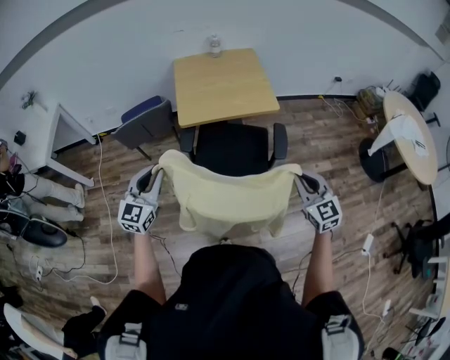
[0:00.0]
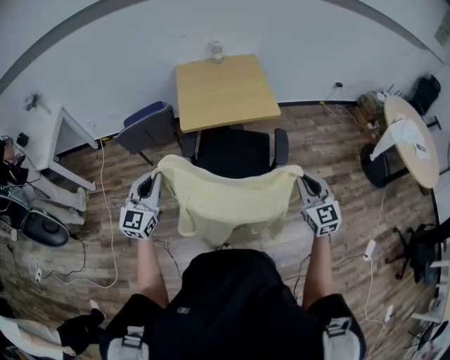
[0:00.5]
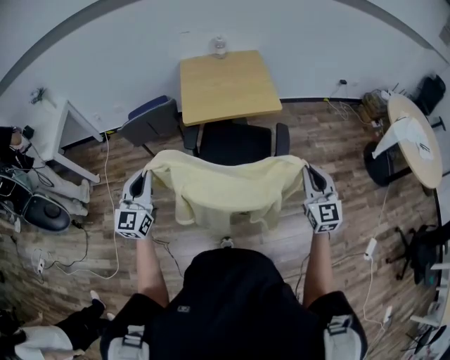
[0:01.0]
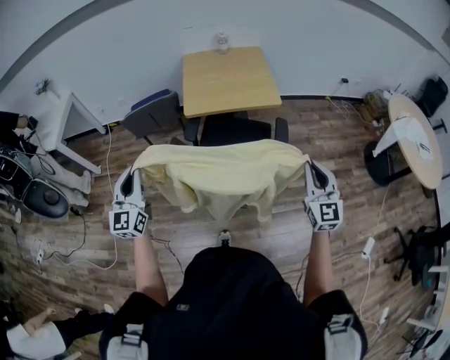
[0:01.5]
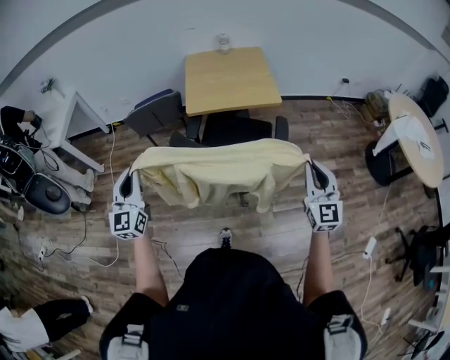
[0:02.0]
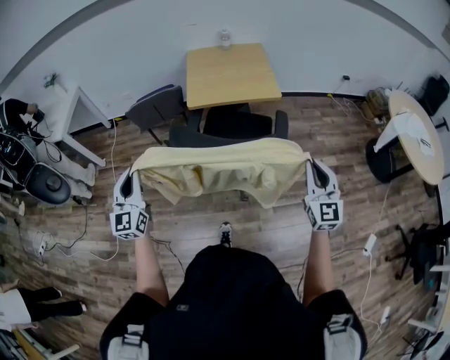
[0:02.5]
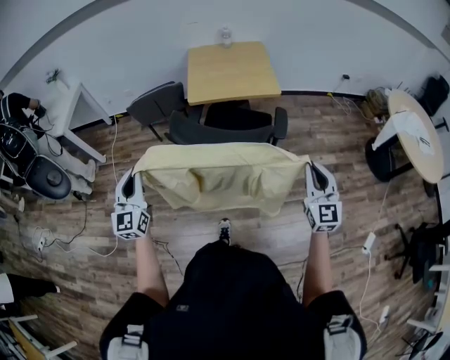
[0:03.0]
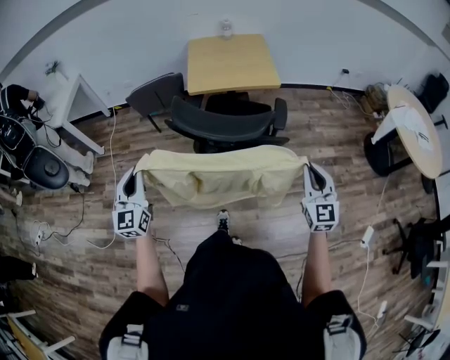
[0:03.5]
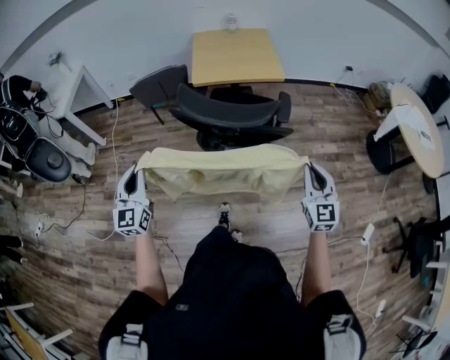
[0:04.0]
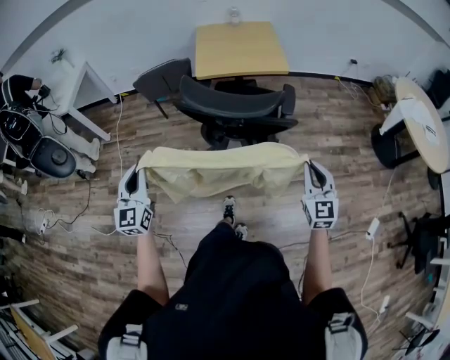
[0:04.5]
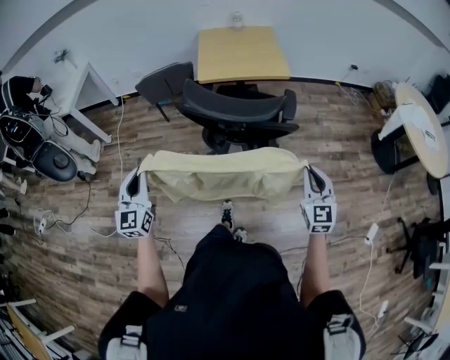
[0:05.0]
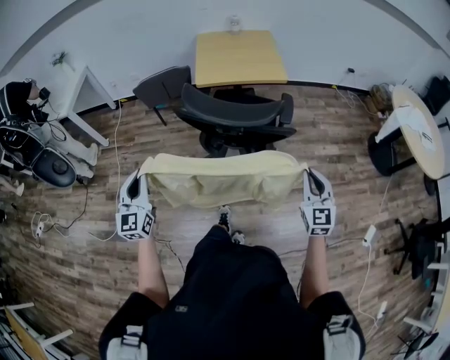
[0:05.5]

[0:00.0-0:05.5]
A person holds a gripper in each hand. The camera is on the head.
0:00.0 to 0:02.0: The right gripper is displaced backward, upward and to the right by roughly 10 cm. The left gripper shifts roughly 15 cm backward and upward, and rotates about 30 degrees.
0:02.0 to 0:03.5: Both grippers move backward, approximately 10 cm.
0:03.5 to 0:05.5: The right gripper ends up approximately 5 cm from where it was. Meanwhile the left gripper ends up about 5 cm from where it was.

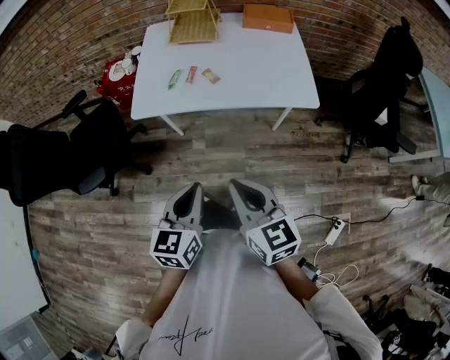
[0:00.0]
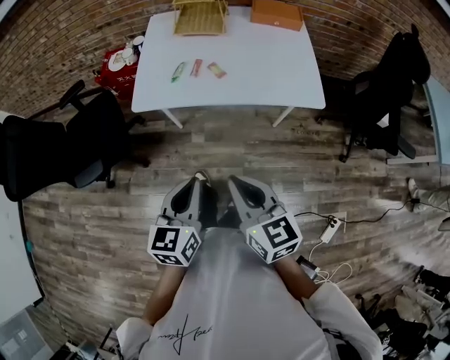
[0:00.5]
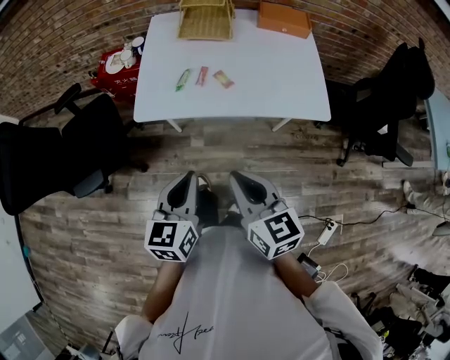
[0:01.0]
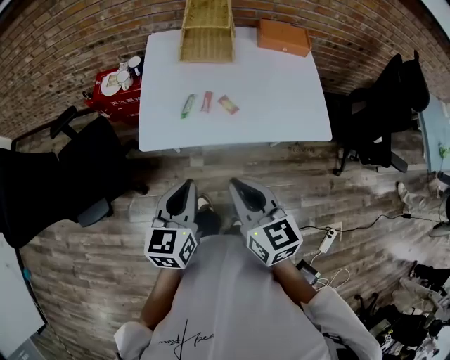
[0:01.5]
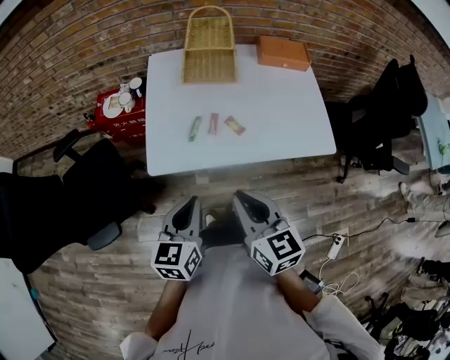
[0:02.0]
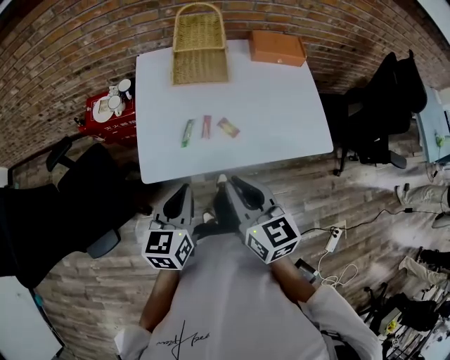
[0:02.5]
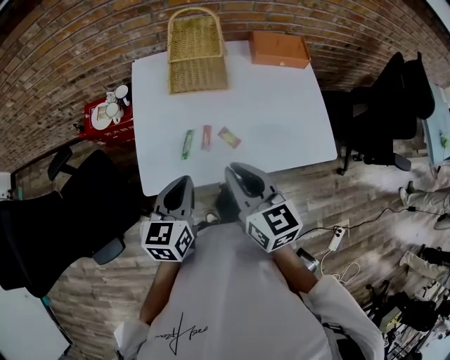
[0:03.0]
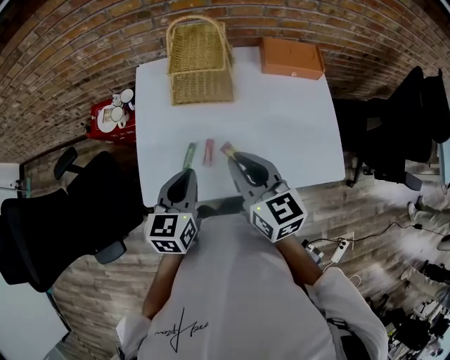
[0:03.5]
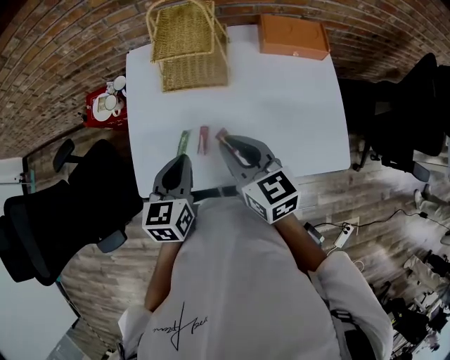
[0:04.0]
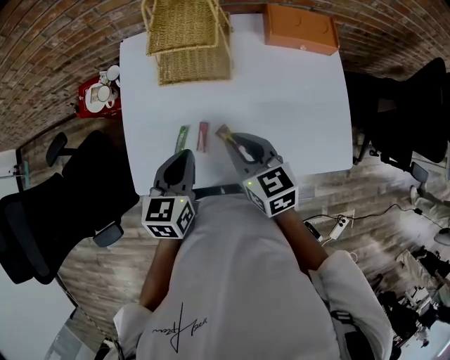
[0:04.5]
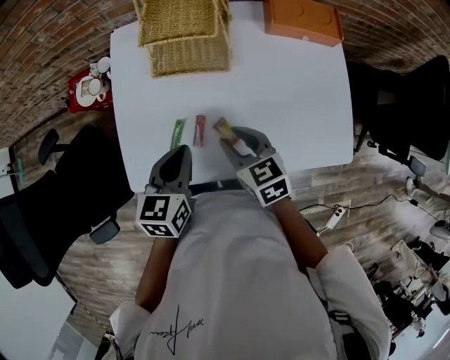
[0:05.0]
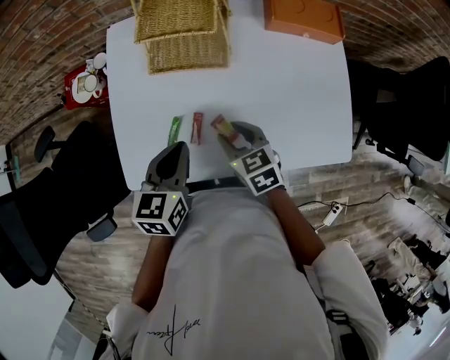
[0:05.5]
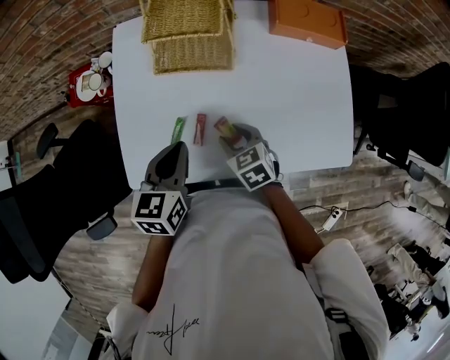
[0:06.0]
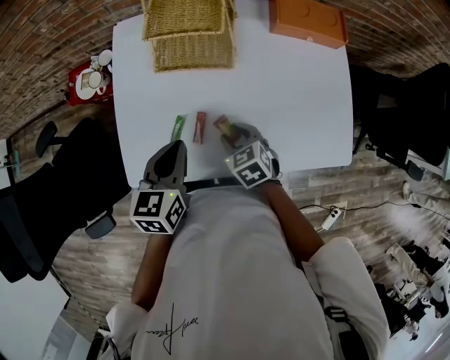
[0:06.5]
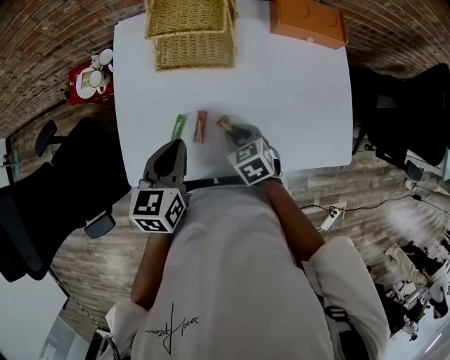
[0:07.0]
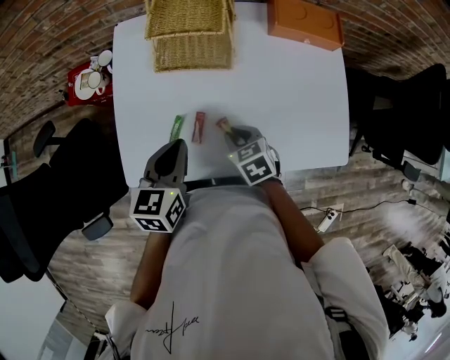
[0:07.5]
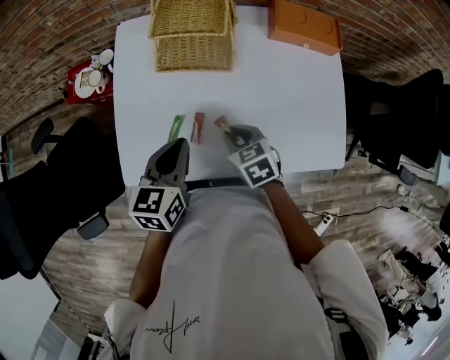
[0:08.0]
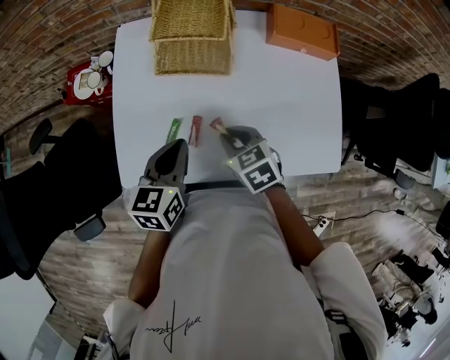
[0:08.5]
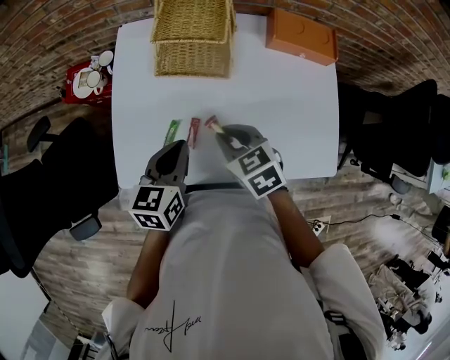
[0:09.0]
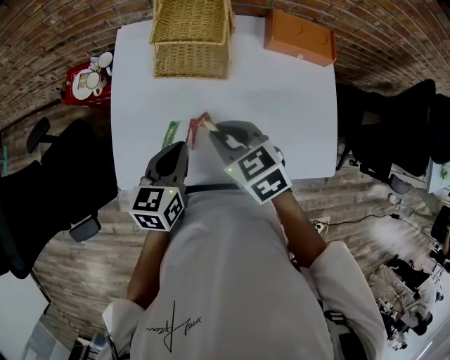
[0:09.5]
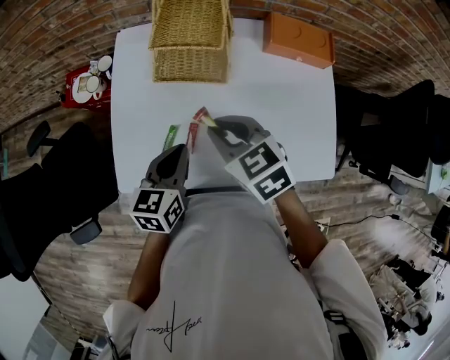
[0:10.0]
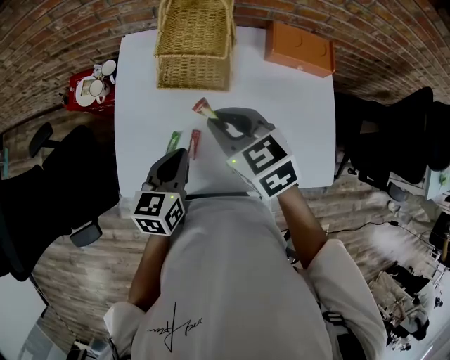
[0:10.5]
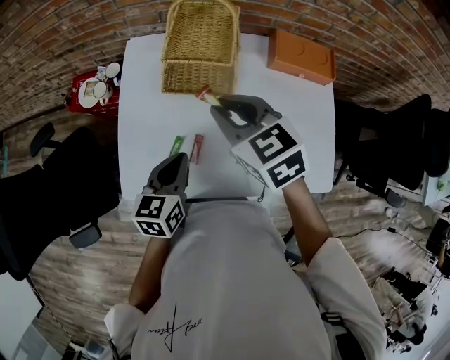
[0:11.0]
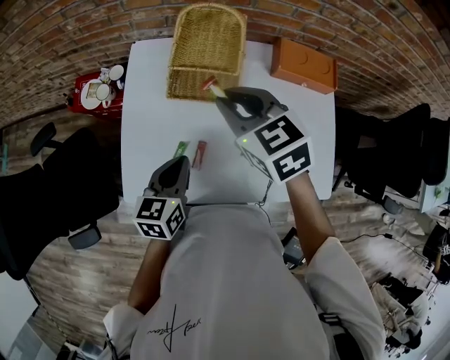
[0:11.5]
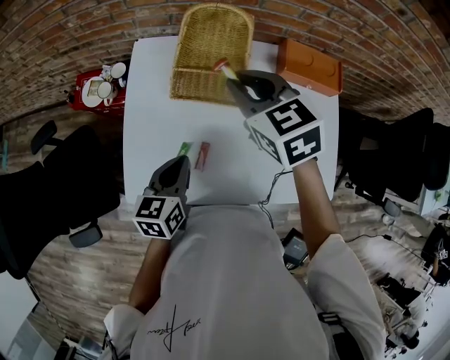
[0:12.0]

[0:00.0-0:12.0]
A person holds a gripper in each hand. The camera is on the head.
0:00.0 to 0:02.0: Both grippers travel together forward and to the left, about 20 cm.
0:02.0 to 0:04.0: The grippers both shift forward by some 20 cm.
0:04.0 to 0:06.0: The right gripper is displaced downward by approximately 20 cm, swivels approximately 30 degrees, and opens its fingers.
0:06.0 to 0:08.0: The right gripper closes up.
0:08.0 to 0:10.0: The right gripper shifts about 15 cm upward.
0:10.0 to 0:12.0: The right gripper moves forward and upward, some 15 cm.

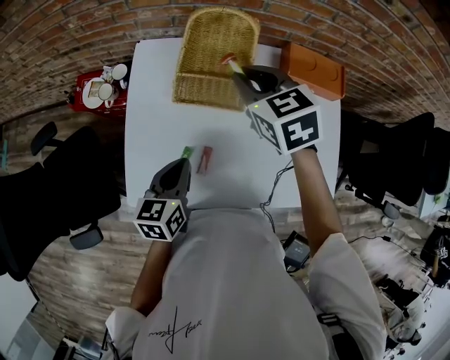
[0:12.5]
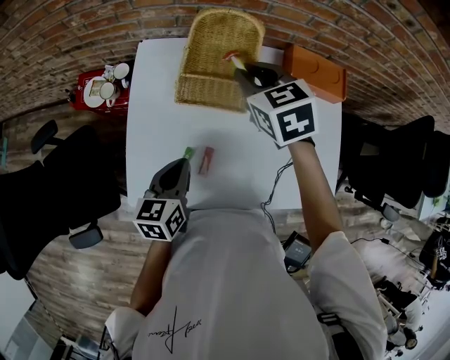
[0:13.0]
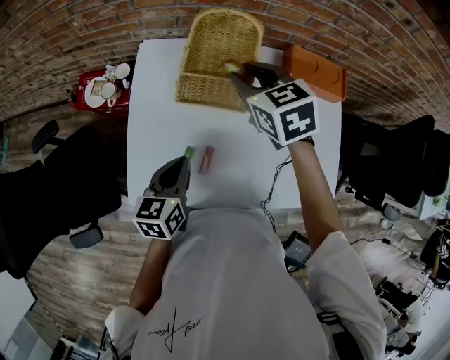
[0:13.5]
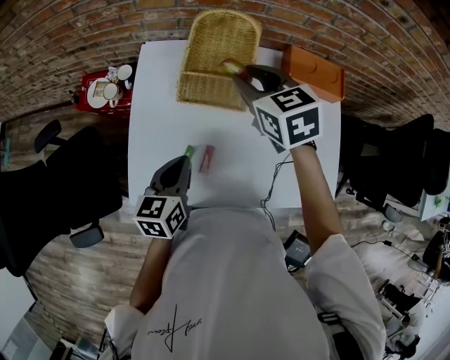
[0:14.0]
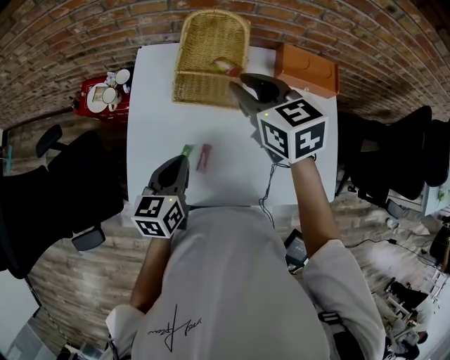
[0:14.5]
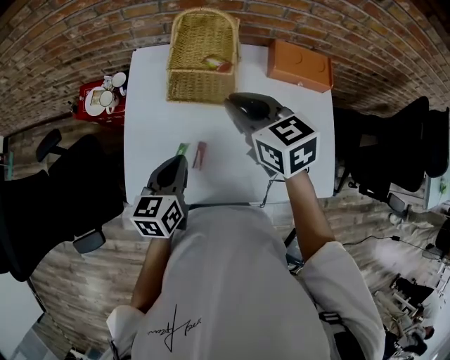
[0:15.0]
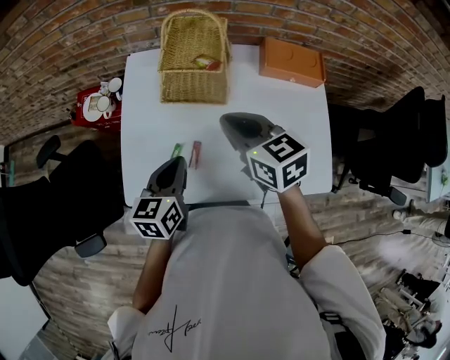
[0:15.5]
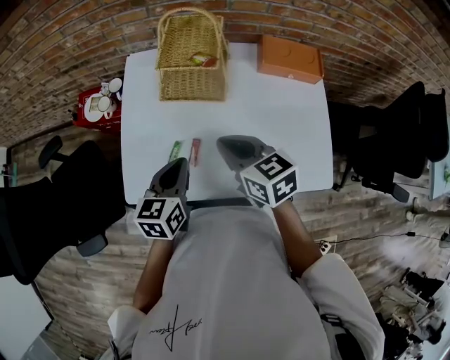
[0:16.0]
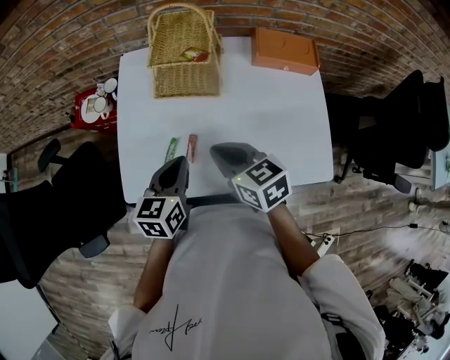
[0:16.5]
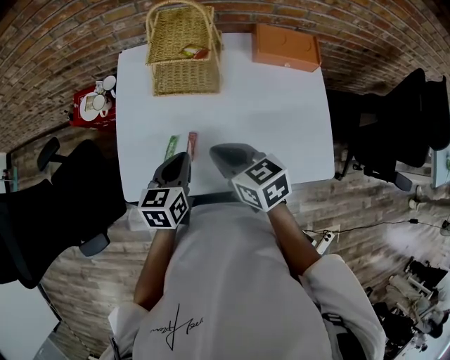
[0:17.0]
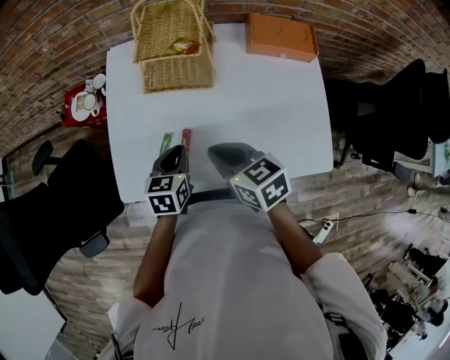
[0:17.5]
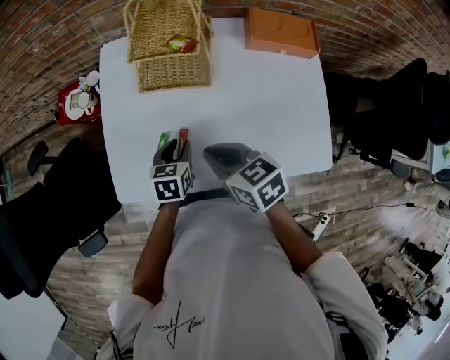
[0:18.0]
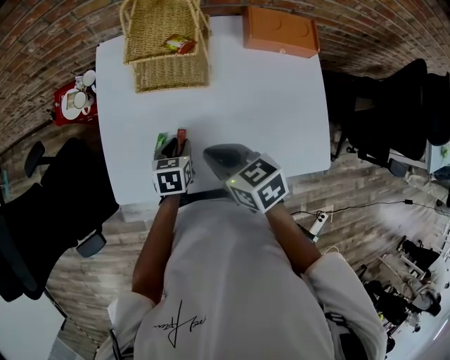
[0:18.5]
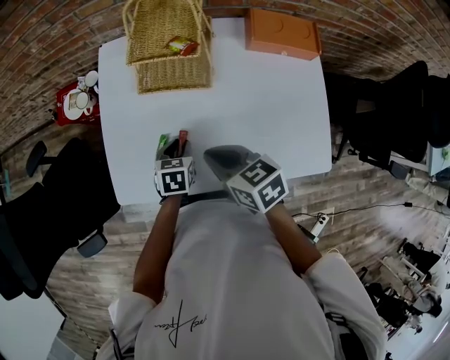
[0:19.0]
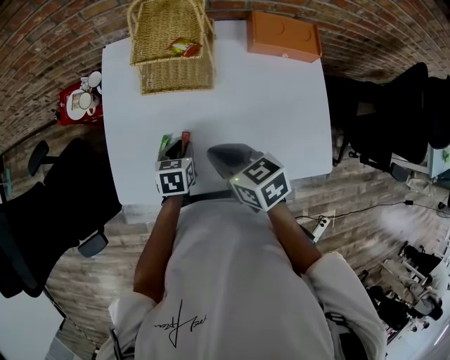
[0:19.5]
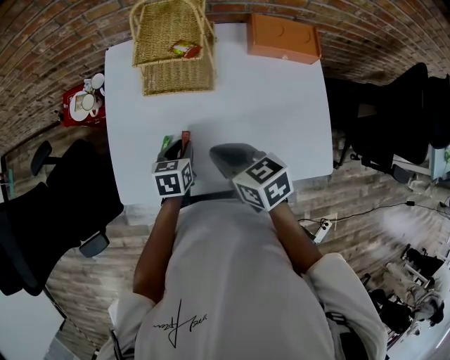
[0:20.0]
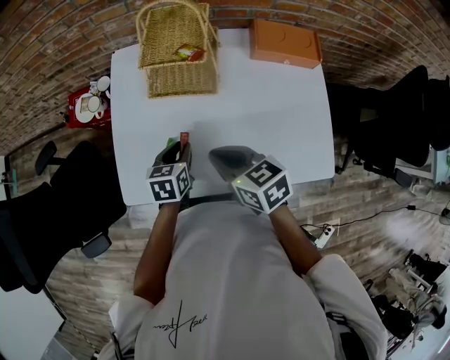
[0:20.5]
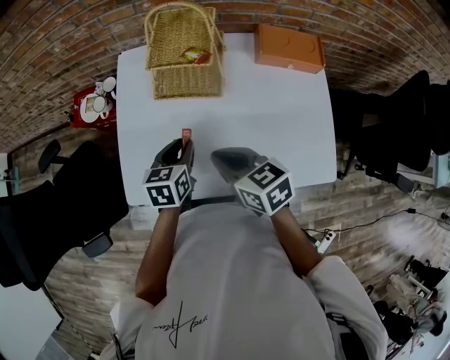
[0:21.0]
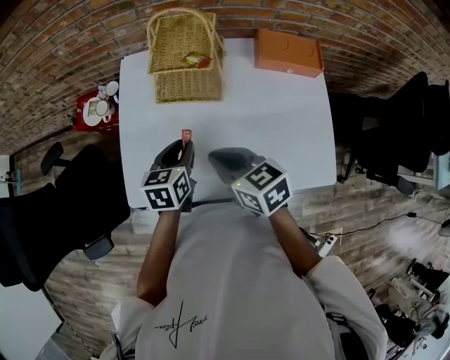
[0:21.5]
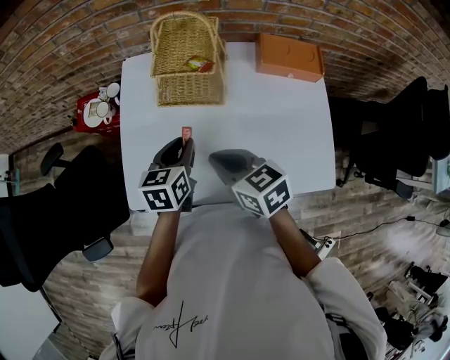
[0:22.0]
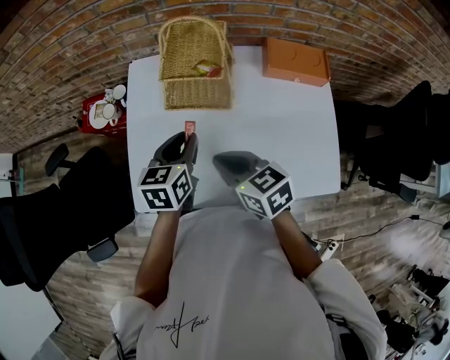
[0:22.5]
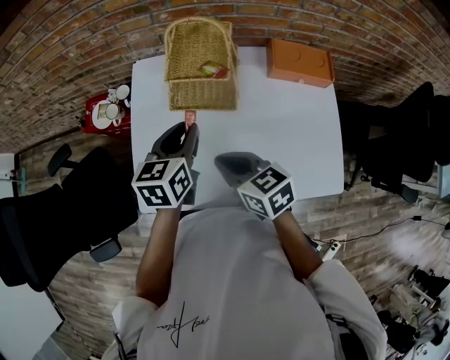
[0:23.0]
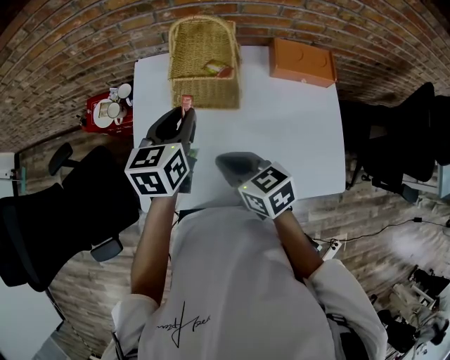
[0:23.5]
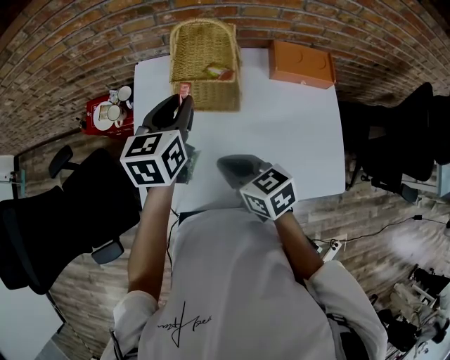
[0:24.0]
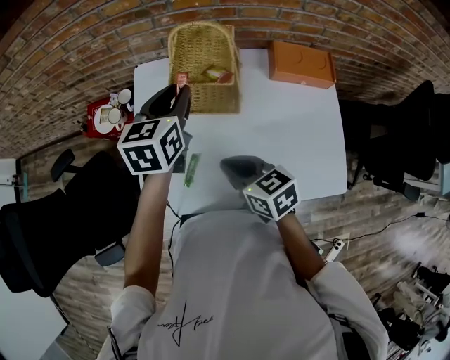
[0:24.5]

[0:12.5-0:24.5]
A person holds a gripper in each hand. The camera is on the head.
0:12.5 to 0:14.5: The grippers make only small movements.
0:14.5 to 0:16.5: The right gripper heads backward and downward, covering approximately 20 cm, and closes up. Meanwhile the left gripper ends up about 5 cm from where it was.
0:16.5 to 0:18.5: The left gripper moves downward, roughly 15 cm, rotates about 30 degrees, and opens.
0:18.5 to 0:20.5: The left gripper ends up roughly 5 cm from where it was.
0:20.5 to 0:22.5: The left gripper travels upward and forward by roughly 15 cm.
0:22.5 to 0:24.5: The left gripper is displaced forward and upward by some 15 cm.
